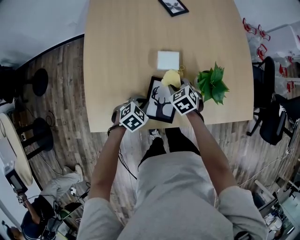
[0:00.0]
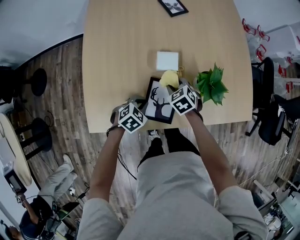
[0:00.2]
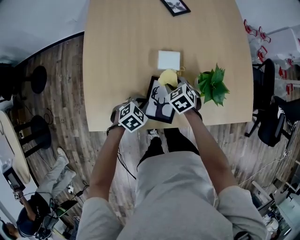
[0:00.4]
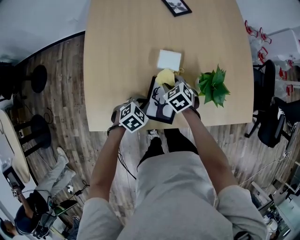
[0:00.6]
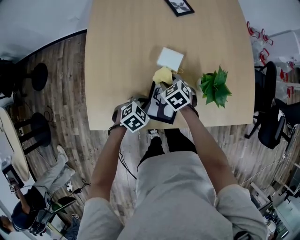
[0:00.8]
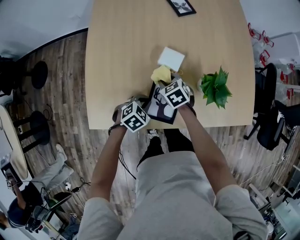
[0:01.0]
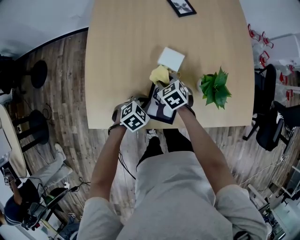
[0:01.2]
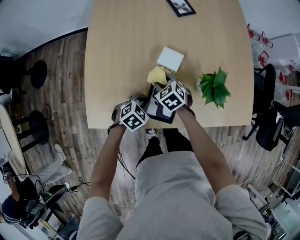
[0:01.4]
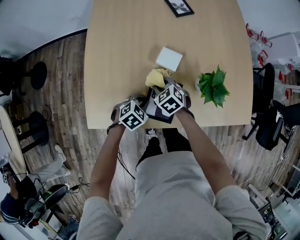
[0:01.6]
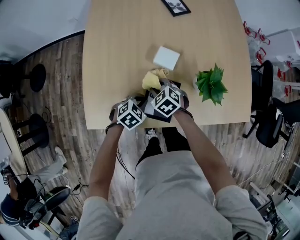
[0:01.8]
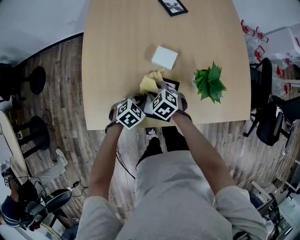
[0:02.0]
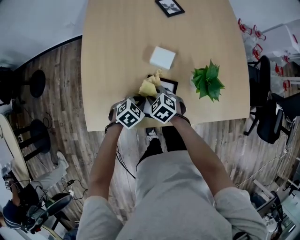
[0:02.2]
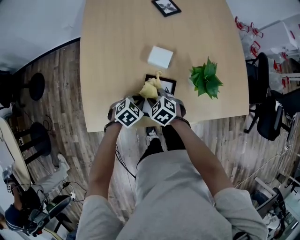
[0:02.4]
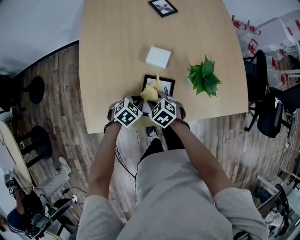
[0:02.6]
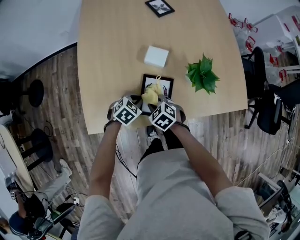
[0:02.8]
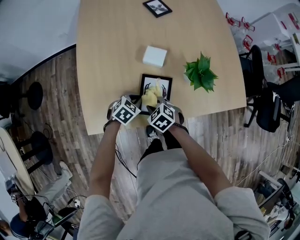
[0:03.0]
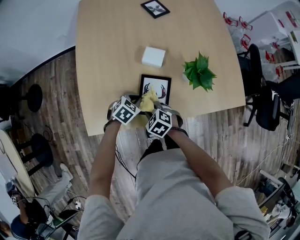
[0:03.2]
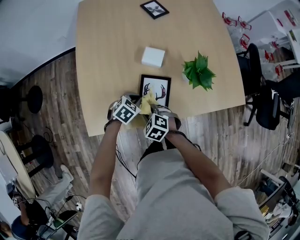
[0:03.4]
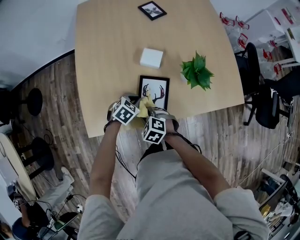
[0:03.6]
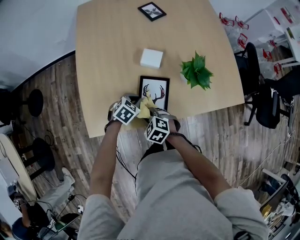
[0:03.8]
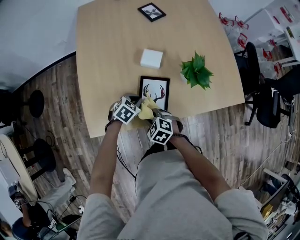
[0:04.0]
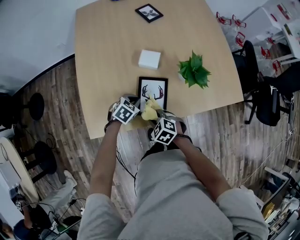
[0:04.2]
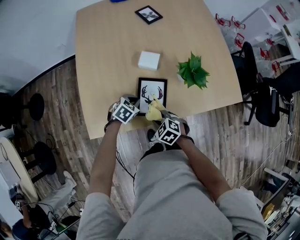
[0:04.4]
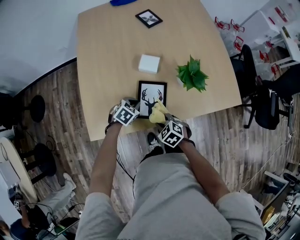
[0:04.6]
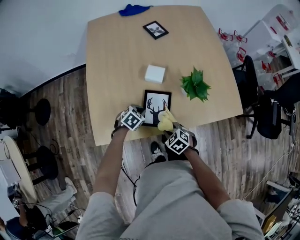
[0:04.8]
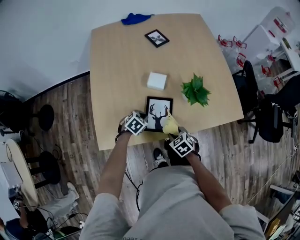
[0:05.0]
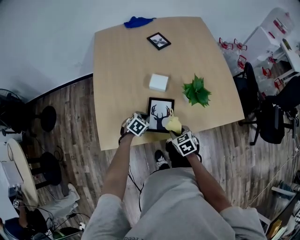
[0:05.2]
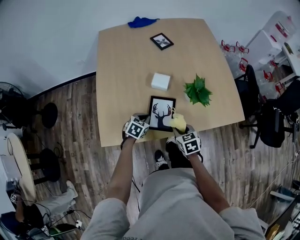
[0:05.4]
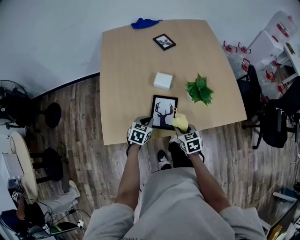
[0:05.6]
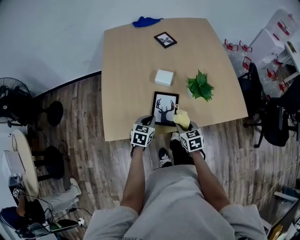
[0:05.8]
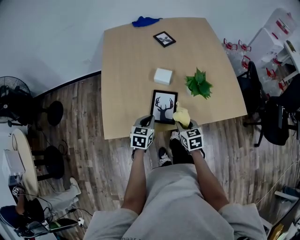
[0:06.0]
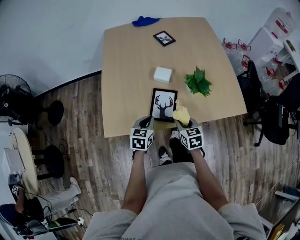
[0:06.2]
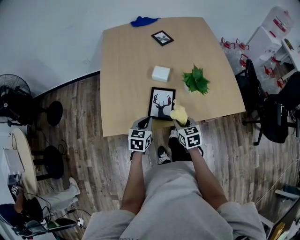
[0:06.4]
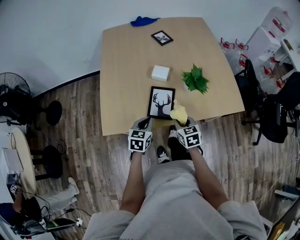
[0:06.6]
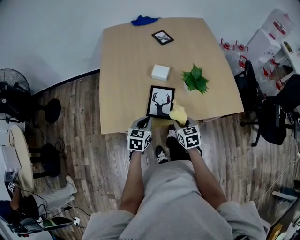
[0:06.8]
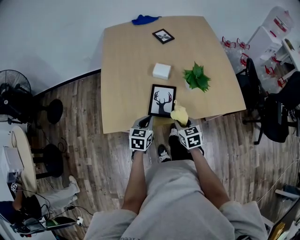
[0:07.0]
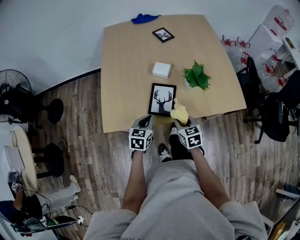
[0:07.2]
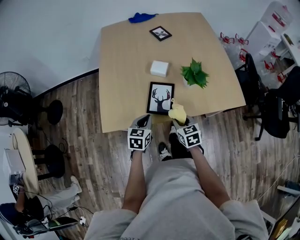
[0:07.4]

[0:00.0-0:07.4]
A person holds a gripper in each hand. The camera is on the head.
0:00.0 to 0:01.4: The right gripper shifts about 10 cm to the left.
0:01.4 to 0:03.0: The right gripper shifts roughly 15 cm backward.
0:03.0 to 0:04.4: The right gripper goes about 5 cm backward.
0:04.4 to 0:06.0: The right gripper moves upward and to the right, approximately 10 cm, and rotates approximately 40 degrees. The left gripper heads upward and backward, covering approximately 10 cm, and rotates approximately 40 degrees.
0:06.0 to 0:07.4: The grippers make only small movements.

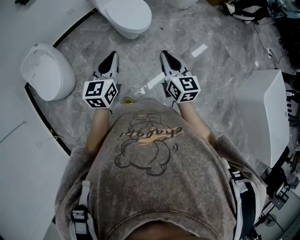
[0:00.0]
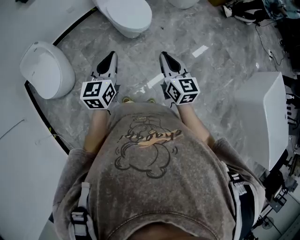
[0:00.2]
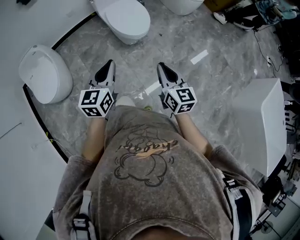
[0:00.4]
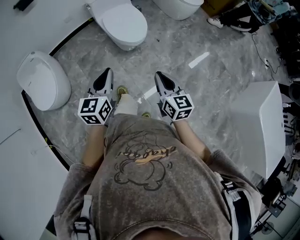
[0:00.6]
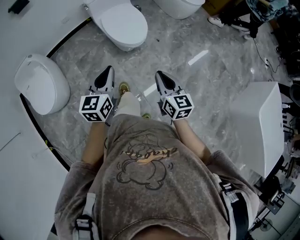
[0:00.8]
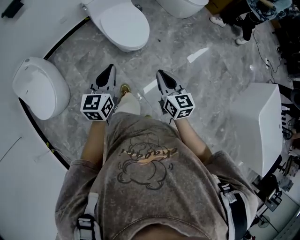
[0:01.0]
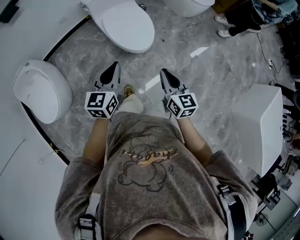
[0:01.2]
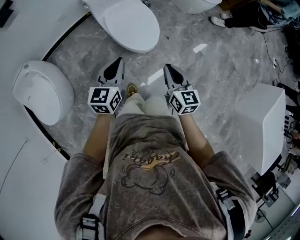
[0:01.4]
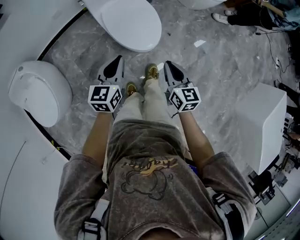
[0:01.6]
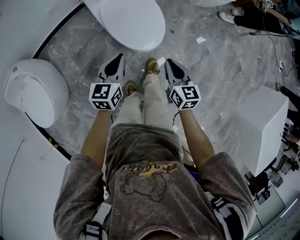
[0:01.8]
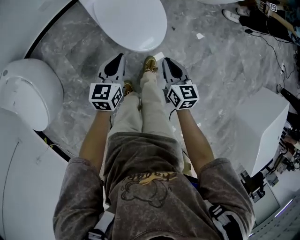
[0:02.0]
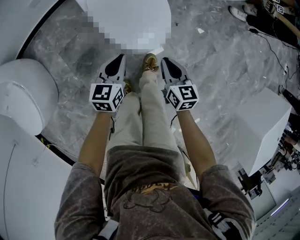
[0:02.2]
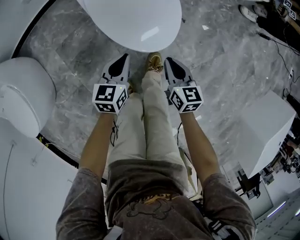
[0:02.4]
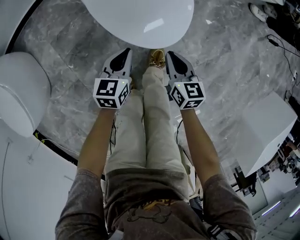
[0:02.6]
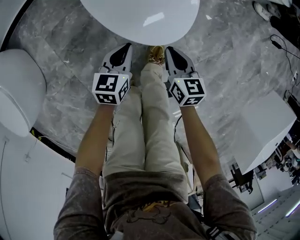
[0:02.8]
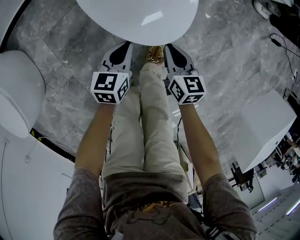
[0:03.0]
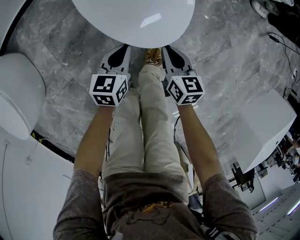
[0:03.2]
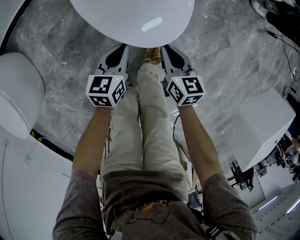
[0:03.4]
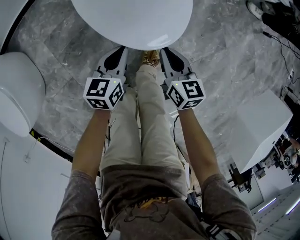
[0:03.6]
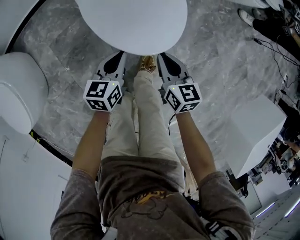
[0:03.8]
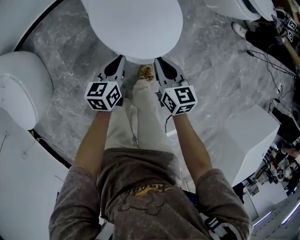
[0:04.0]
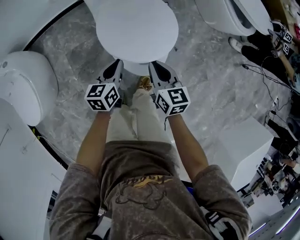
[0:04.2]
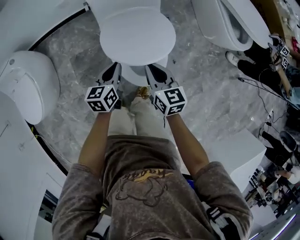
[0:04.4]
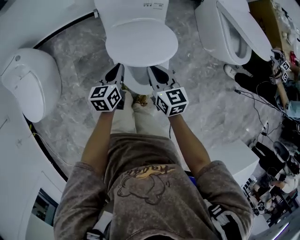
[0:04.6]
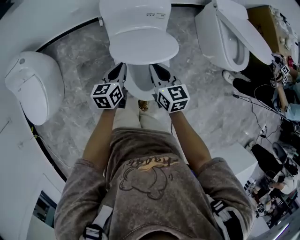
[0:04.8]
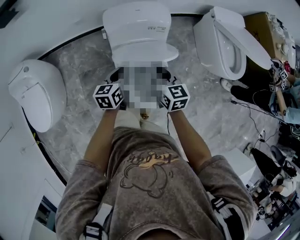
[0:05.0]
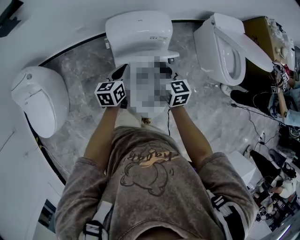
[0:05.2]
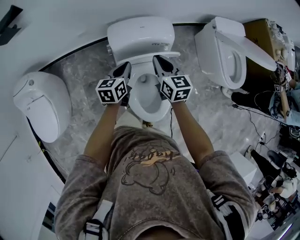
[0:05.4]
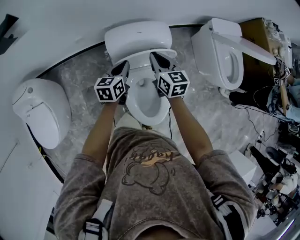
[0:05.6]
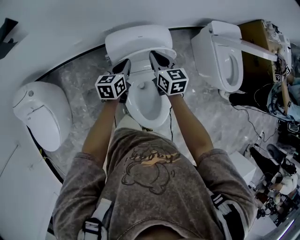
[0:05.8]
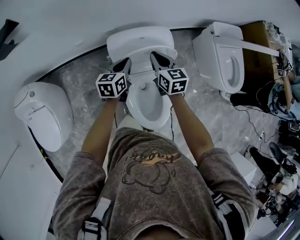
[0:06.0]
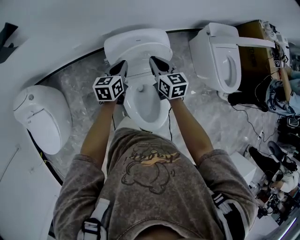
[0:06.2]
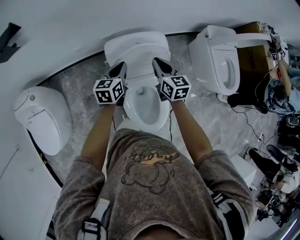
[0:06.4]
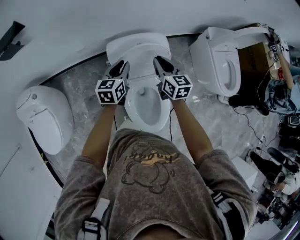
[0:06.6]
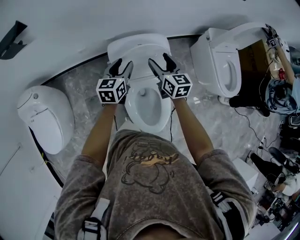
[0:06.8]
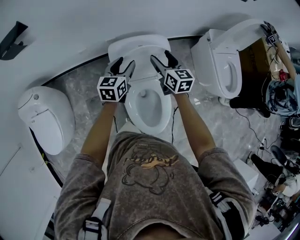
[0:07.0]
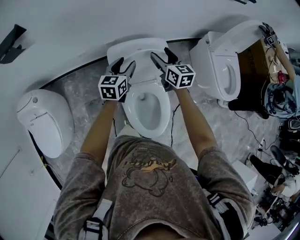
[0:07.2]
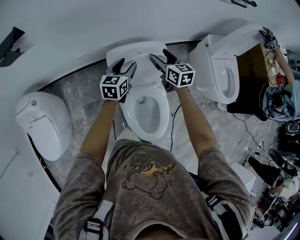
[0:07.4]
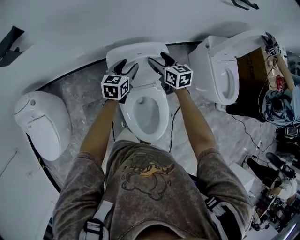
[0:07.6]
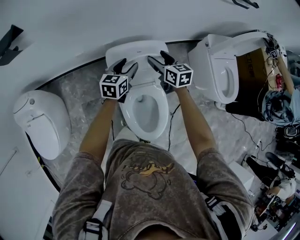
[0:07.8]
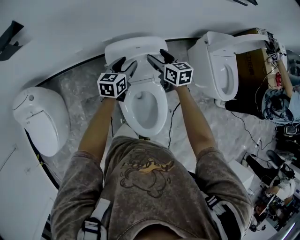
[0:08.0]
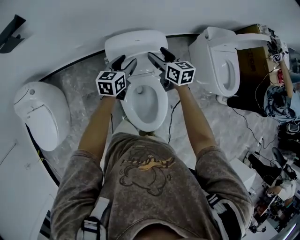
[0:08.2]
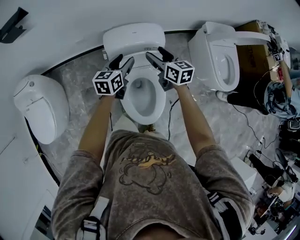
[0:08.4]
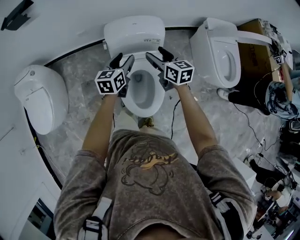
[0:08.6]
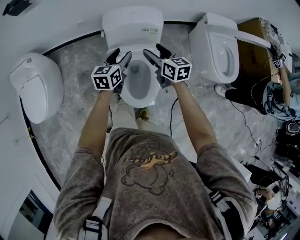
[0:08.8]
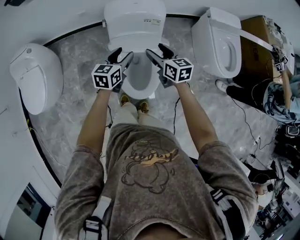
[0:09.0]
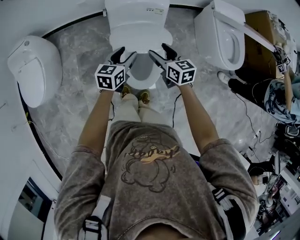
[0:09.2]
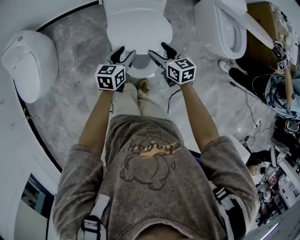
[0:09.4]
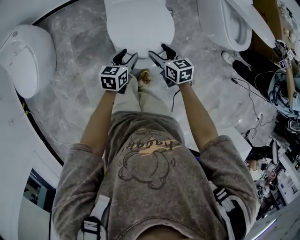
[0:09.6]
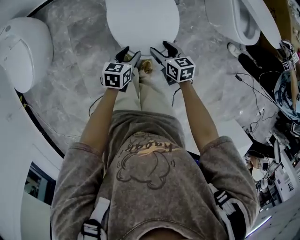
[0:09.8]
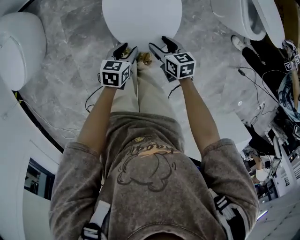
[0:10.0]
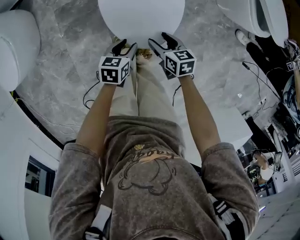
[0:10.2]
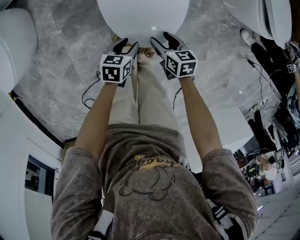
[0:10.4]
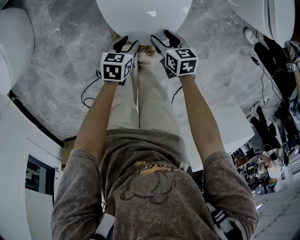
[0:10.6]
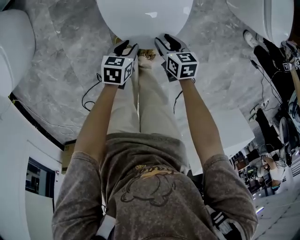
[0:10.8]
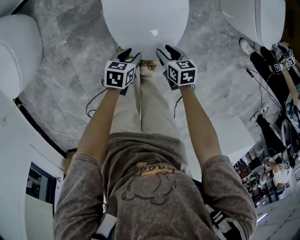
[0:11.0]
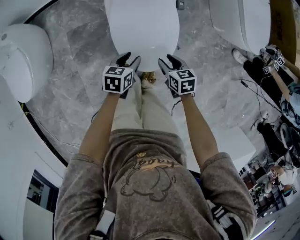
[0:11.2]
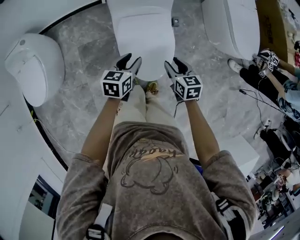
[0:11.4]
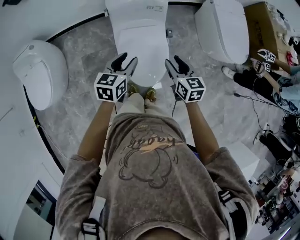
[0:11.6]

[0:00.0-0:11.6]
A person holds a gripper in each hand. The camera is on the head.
0:00.0 to 0:01.4: The left gripper heads forward, covering approximately 30 cm. Meanwhile the right gripper heads forward and downward, covering roughly 30 cm.
0:01.4 to 0:02.8: Both grippers move downward, about 50 cm. The right gripper rotates about 20 degrees. The left gripper turns by approximately 20 degrees.
0:02.8 to 0:04.4: The grippers both shift upward and forward by roughly 35 cm. The left gripper changes its angle by roughly 20 degrees, while the right gripper swivels some 20 degrees.
0:04.4 to 0:05.8: The grippers both shift forward by roughly 30 cm.
0:05.8 to 0:07.2: The left gripper shifts approximately 5 cm upward, and opens up. The right gripper shifts approximately 5 cm forward, and opens its fingers.
0:07.2 to 0:08.8: Both grippers move backward, roughly 20 cm.
0:08.8 to 0:10.2: The two grippers go approximately 40 cm downward and backward. The right gripper rotates some 30 degrees; the left gripper turns by roughly 30 degrees.
0:10.2 to 0:11.6: Both grippers move upward, about 30 cm. The right gripper swivels some 30 degrees, while the left gripper turns by approximately 30 degrees.

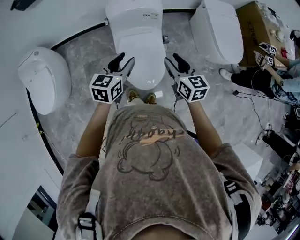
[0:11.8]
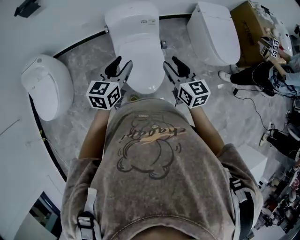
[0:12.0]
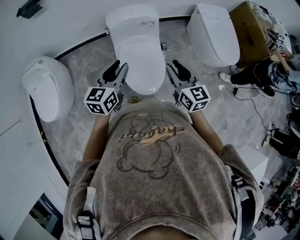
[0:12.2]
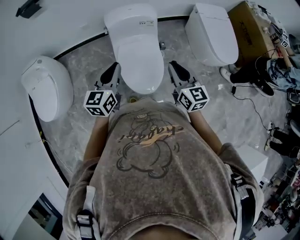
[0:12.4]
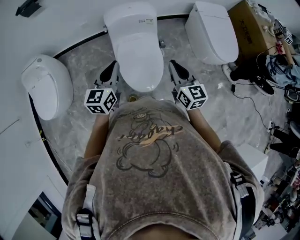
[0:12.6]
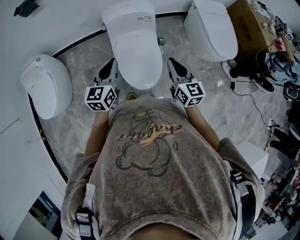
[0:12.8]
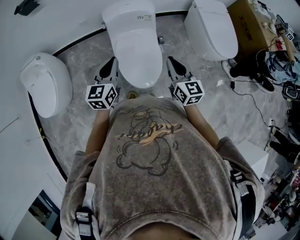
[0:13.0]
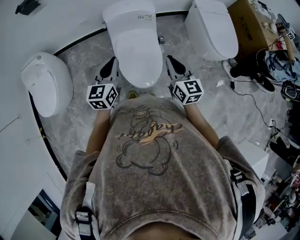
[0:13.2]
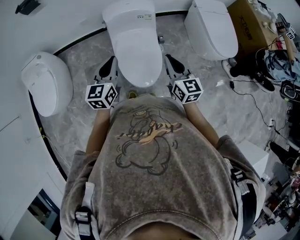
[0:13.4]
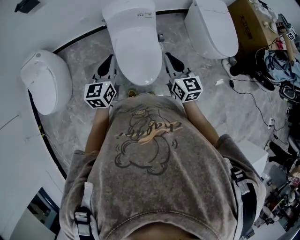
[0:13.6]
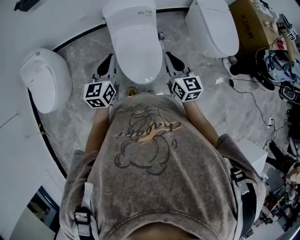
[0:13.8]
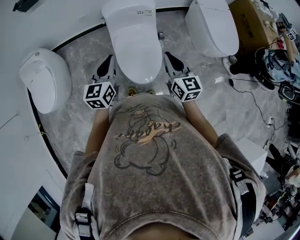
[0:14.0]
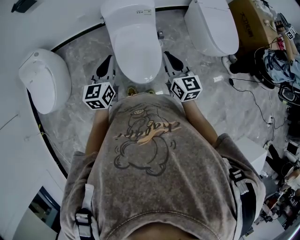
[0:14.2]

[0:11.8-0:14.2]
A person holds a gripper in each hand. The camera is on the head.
0:11.8 to 0:13.0: The right gripper shifts roughly 5 cm backward, and closes, while the left gripper shifts by some 5 cm, and closes up.
0:13.0 to 0:14.2: Both grippers stay put.

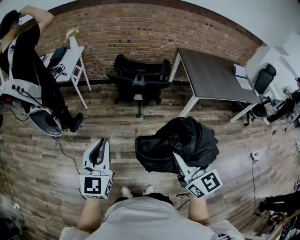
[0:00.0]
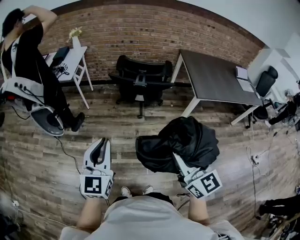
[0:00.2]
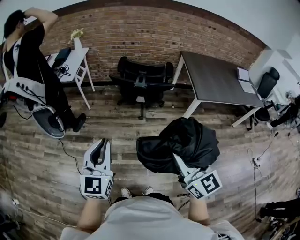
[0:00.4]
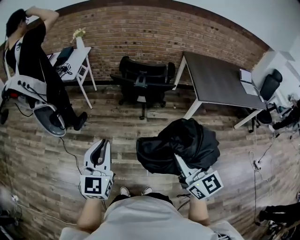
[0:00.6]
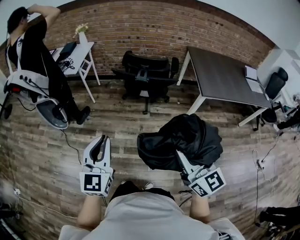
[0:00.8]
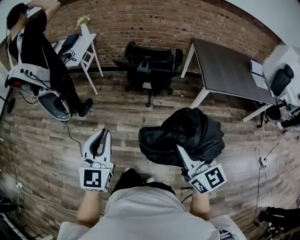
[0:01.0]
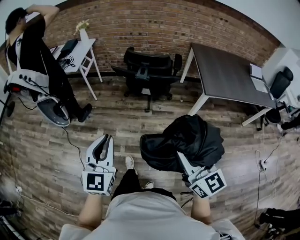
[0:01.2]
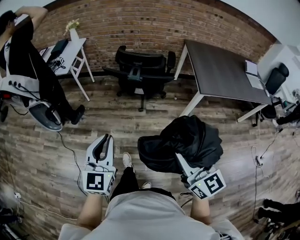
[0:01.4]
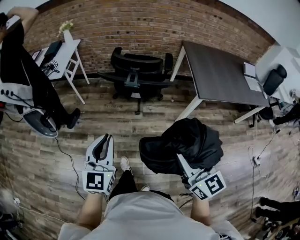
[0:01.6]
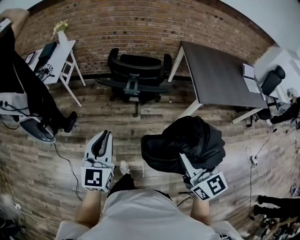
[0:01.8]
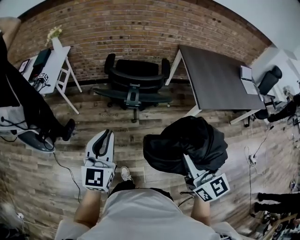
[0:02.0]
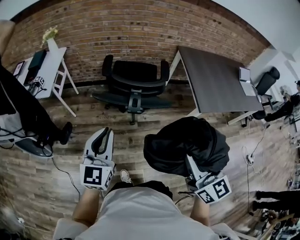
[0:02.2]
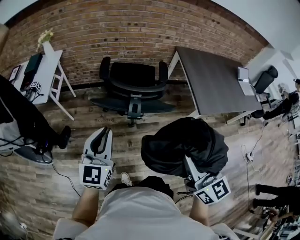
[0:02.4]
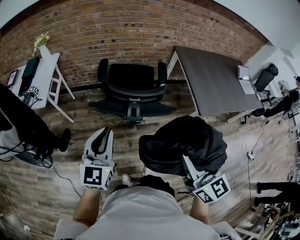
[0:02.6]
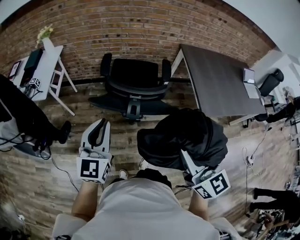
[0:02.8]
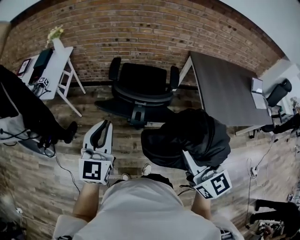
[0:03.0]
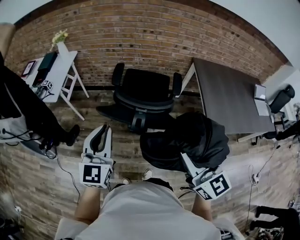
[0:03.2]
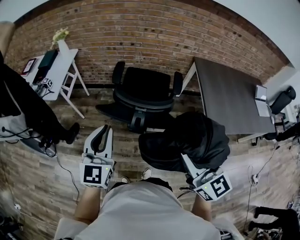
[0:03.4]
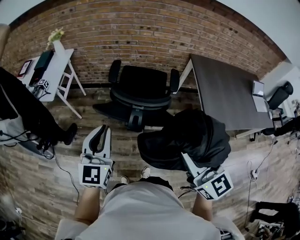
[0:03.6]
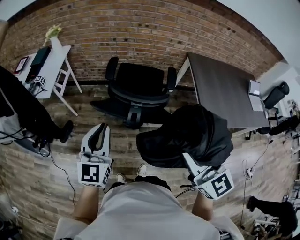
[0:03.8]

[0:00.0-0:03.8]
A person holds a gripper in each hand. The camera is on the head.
0:00.0 to 0:01.2: Both grippers move to the right, roughly 5 cm.
0:01.2 to 0:02.6: The two grippers go some 30 cm forward.
0:02.6 to 0:03.8: The right gripper goes about 5 cm forward, and rotates about 20 degrees.
